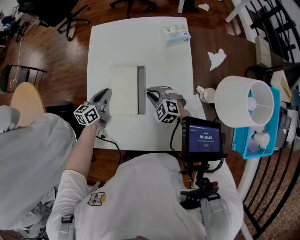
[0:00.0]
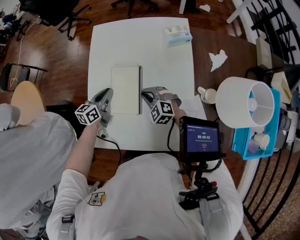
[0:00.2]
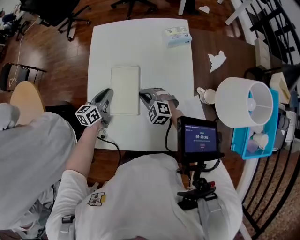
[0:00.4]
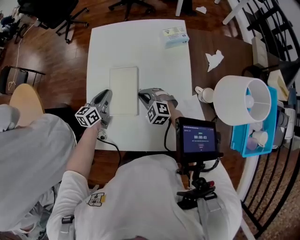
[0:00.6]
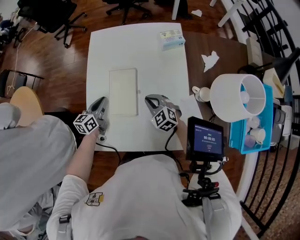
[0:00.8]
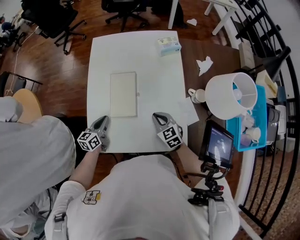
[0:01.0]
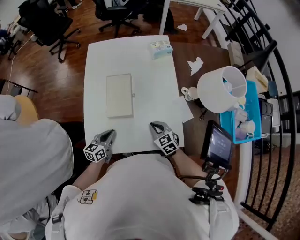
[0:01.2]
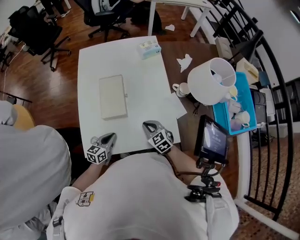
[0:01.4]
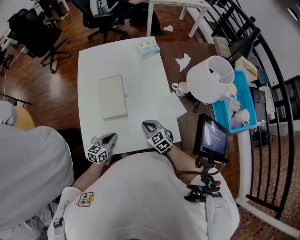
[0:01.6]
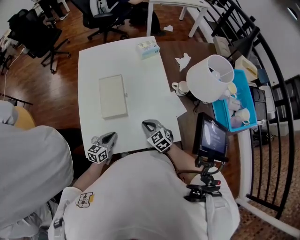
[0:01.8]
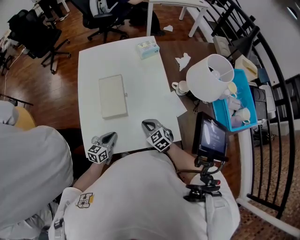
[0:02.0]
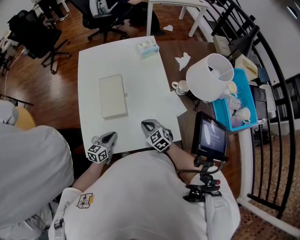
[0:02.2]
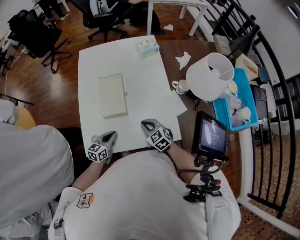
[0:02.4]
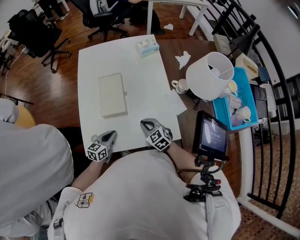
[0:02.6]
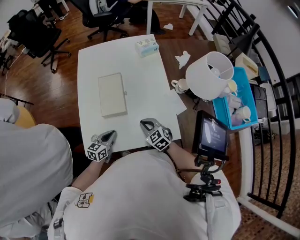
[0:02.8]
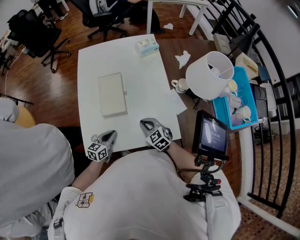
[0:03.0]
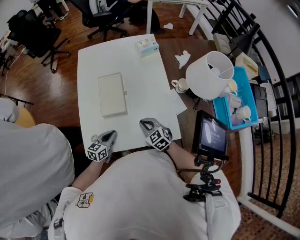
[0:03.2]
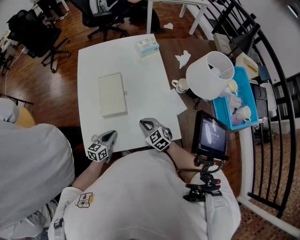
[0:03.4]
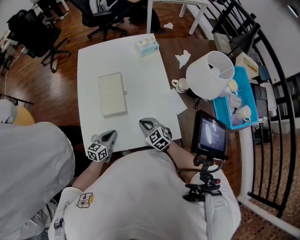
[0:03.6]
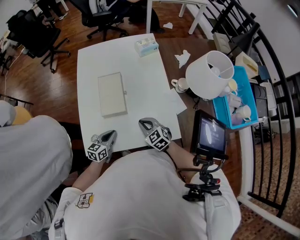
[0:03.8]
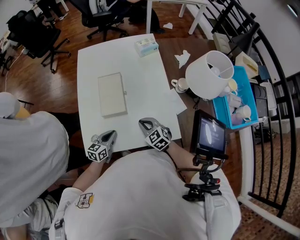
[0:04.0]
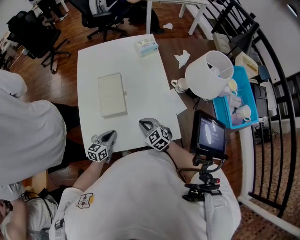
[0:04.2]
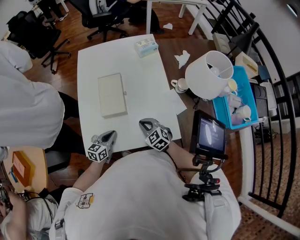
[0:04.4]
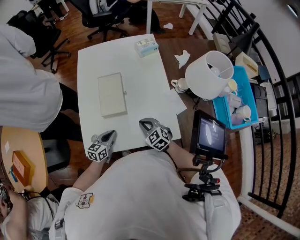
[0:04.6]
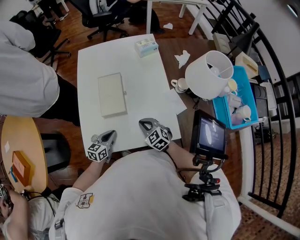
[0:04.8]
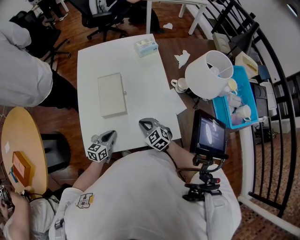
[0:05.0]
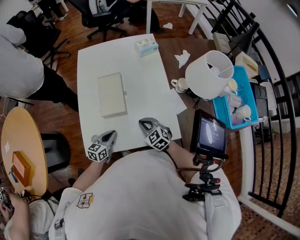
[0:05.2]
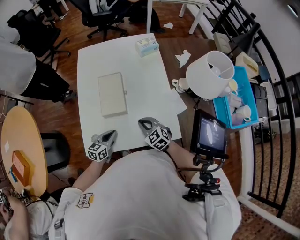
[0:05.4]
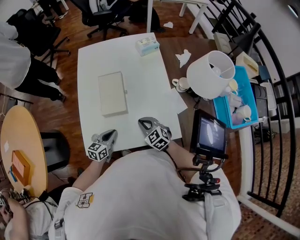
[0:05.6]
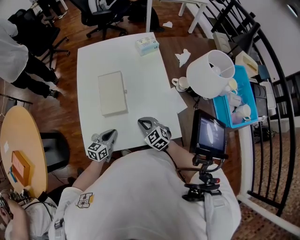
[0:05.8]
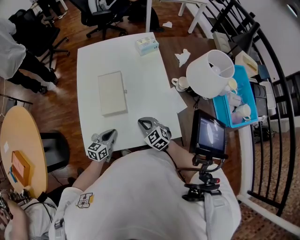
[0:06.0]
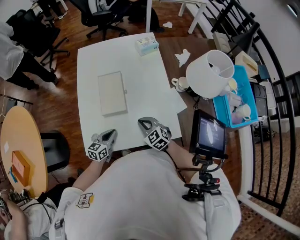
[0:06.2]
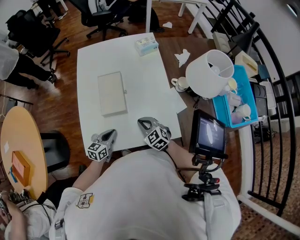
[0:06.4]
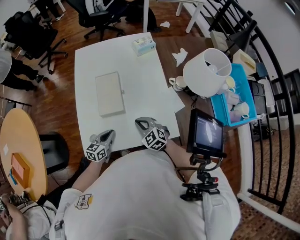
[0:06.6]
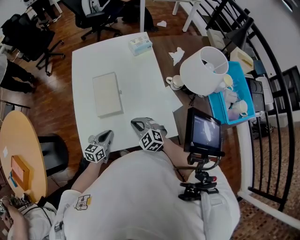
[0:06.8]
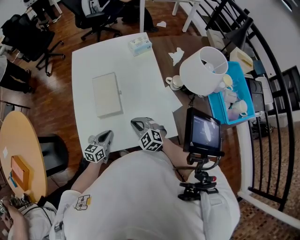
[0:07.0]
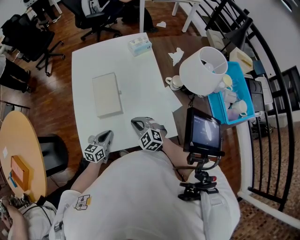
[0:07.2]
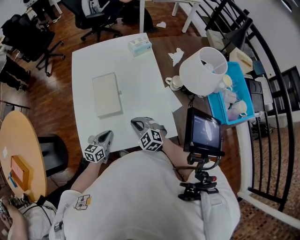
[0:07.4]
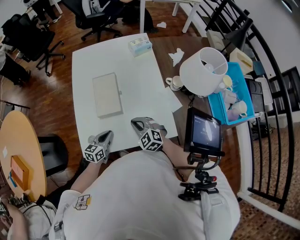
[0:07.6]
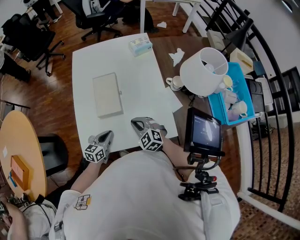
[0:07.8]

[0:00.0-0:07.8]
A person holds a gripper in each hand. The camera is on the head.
0:00.0 to 0:01.6: Both grippers travel together backward, some 20 cm. The right gripper rotates approximately 30 degrees.
0:01.6 to 0:03.2: Neither gripper changes place.
0:03.2 to 0:06.2: The two grippers keep their place.
0:06.2 to 0:07.8: The grippers move only a little.

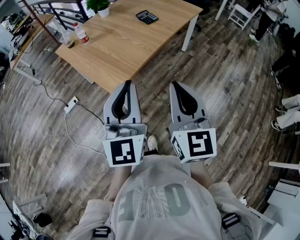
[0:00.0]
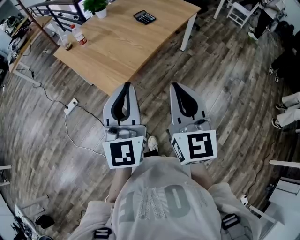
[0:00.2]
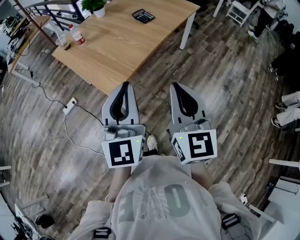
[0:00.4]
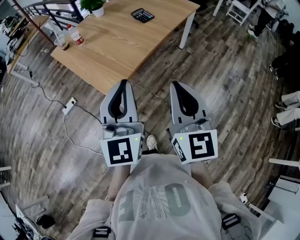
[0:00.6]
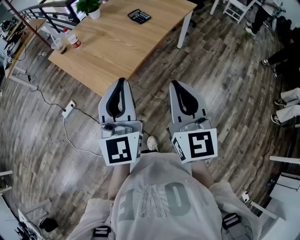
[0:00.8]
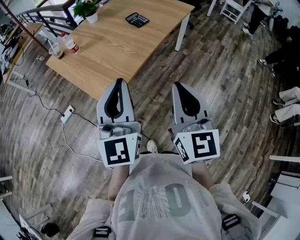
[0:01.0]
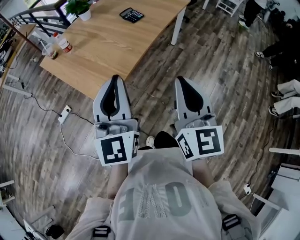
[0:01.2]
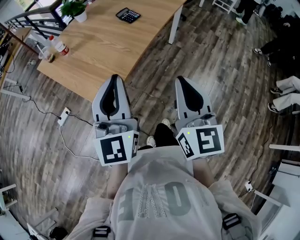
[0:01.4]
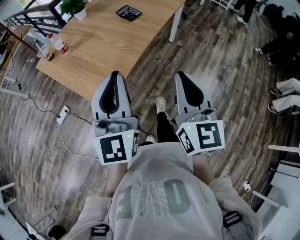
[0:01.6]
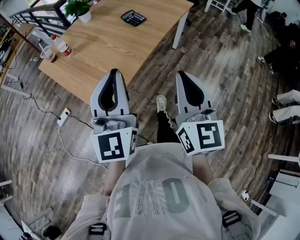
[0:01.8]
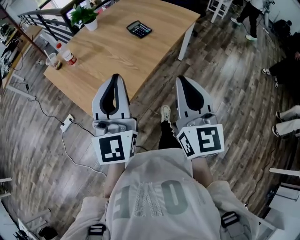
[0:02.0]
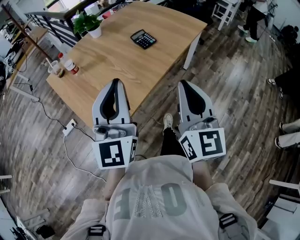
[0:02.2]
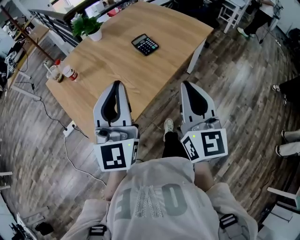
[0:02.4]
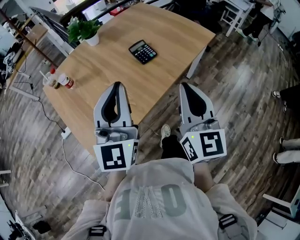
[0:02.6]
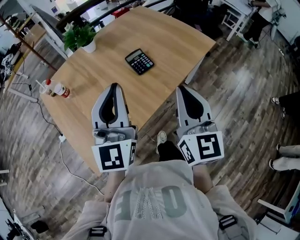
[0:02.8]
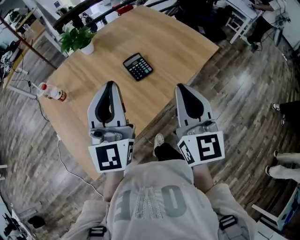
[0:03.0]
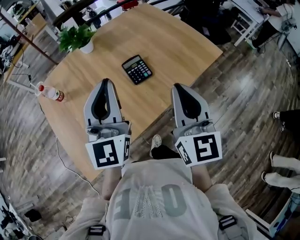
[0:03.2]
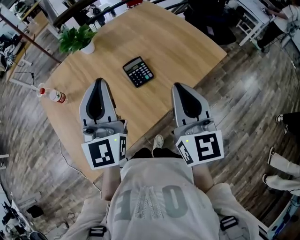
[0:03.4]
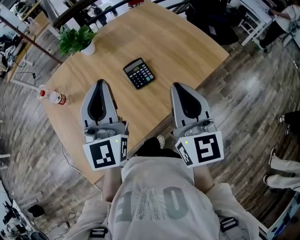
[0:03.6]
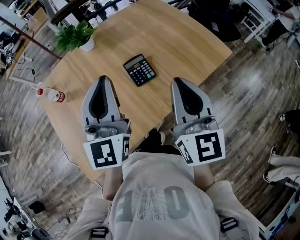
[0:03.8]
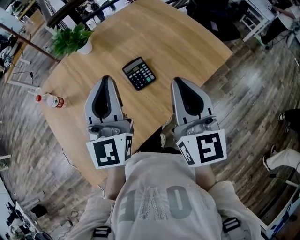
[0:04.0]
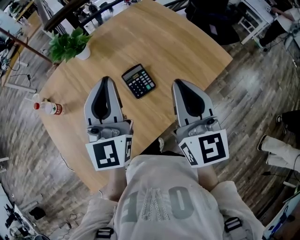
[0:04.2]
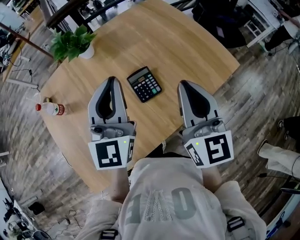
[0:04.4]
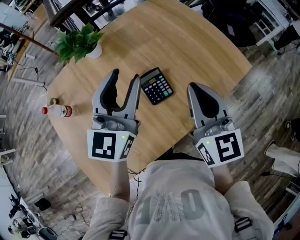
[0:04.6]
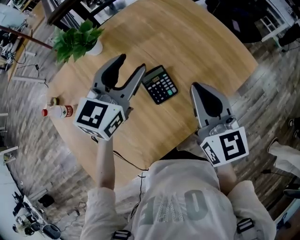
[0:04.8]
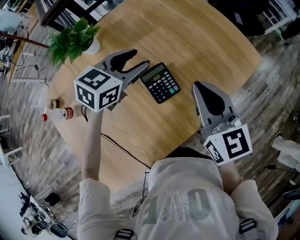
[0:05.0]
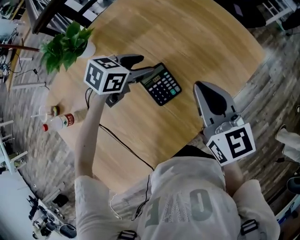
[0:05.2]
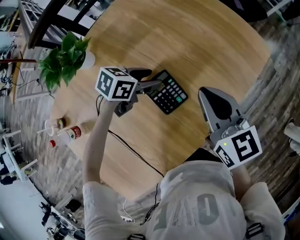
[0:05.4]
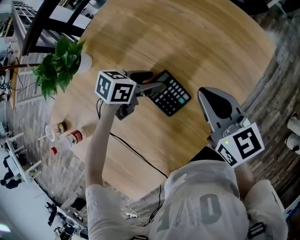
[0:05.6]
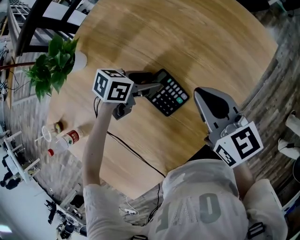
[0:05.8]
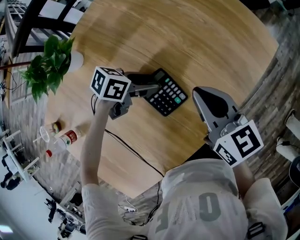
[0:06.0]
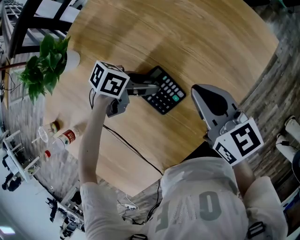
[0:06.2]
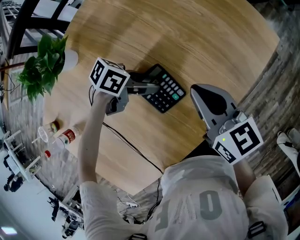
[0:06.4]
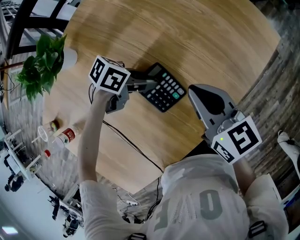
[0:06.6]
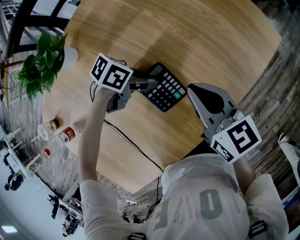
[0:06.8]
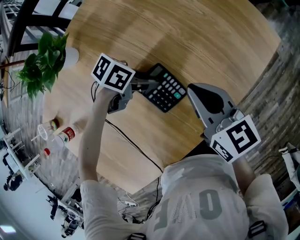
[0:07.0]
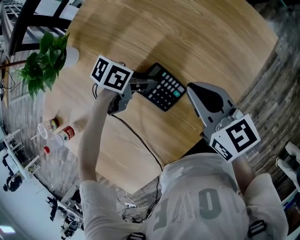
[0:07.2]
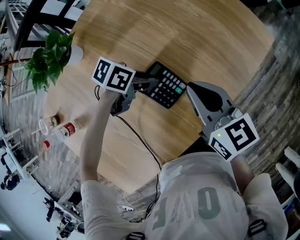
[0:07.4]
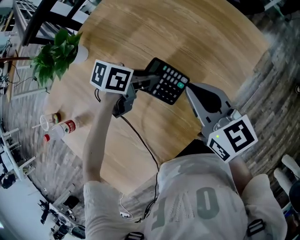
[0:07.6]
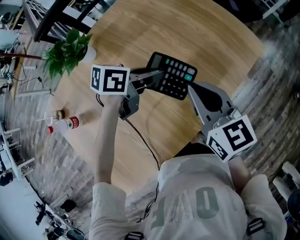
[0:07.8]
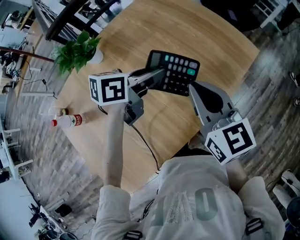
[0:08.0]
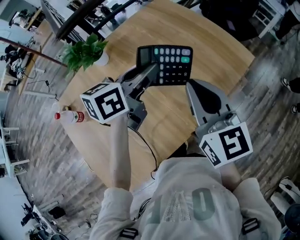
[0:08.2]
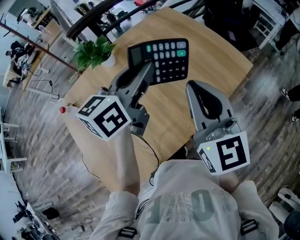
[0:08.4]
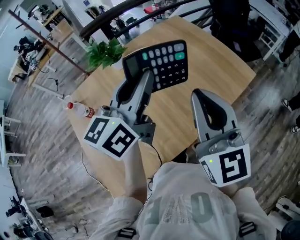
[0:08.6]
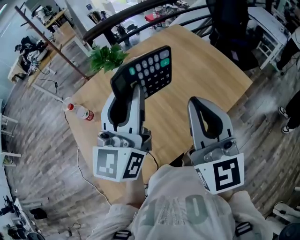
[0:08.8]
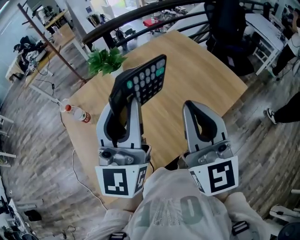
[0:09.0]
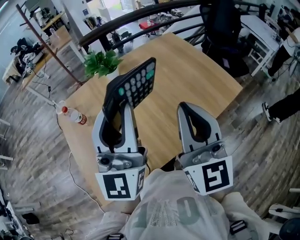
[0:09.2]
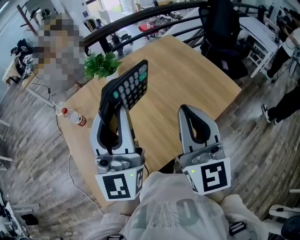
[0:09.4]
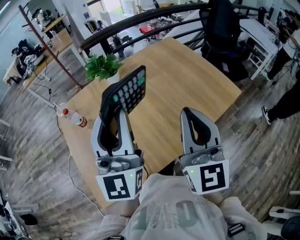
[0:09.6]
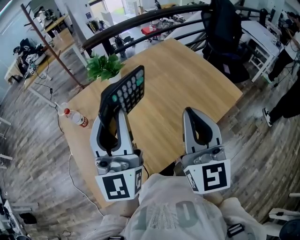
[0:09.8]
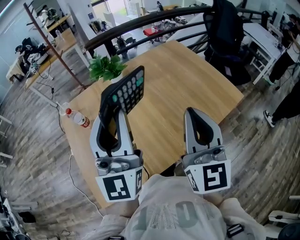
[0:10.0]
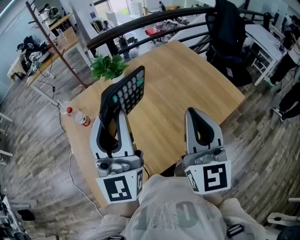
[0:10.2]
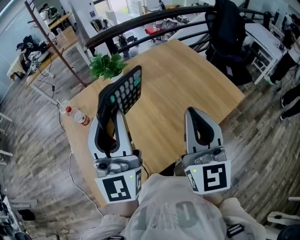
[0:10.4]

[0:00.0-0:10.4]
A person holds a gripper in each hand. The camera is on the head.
0:00.0 to 0:01.4: Both grippers travel together forward, roughly 10 cm.
0:01.4 to 0:03.0: The grippers both shift forward by roughly 40 cm.
0:03.0 to 0:04.4: The two grippers go about 20 cm forward.
0:04.4 to 0:06.0: The right gripper travels downward by about 20 cm, and turns by some 30 degrees. Meanwhile the left gripper heads downward, covering about 35 cm, tilts its fingers some 50 degrees downward, and opens.
0:06.0 to 0:07.4: The left gripper closes.
0:07.4 to 0:09.0: The left gripper moves upward, some 40 cm, and points its fingers roughly 60 degrees further upward, while the right gripper is displaced upward by some 25 cm, and tips its fingers upward by approximately 30 degrees.
0:09.0 to 0:10.4: There are only small adjustments of the grippers.

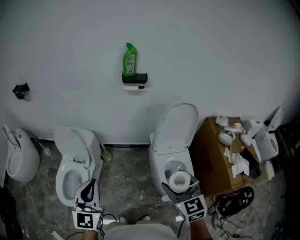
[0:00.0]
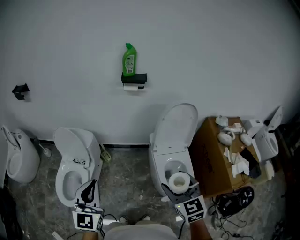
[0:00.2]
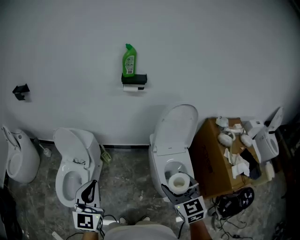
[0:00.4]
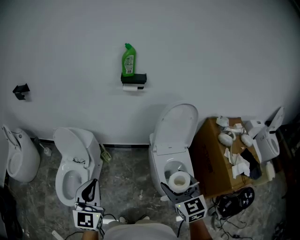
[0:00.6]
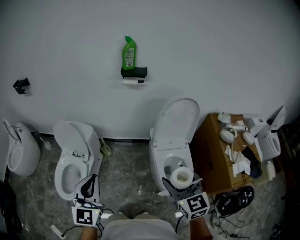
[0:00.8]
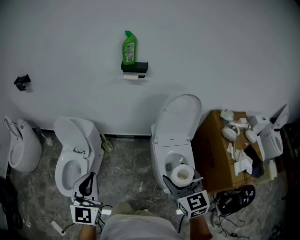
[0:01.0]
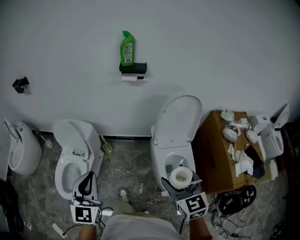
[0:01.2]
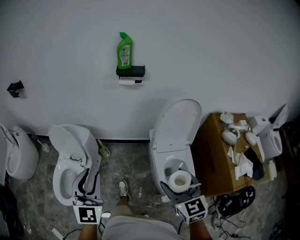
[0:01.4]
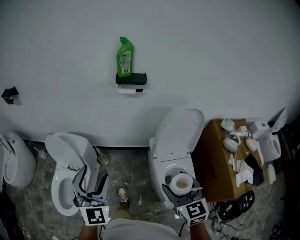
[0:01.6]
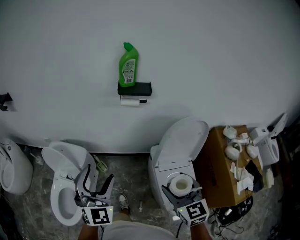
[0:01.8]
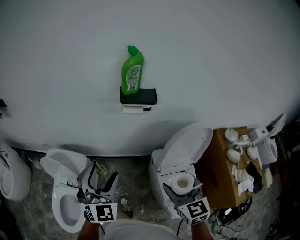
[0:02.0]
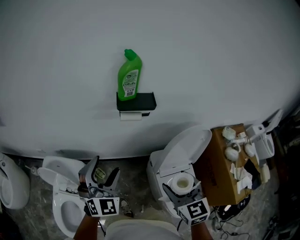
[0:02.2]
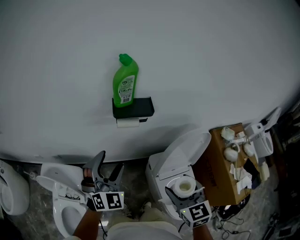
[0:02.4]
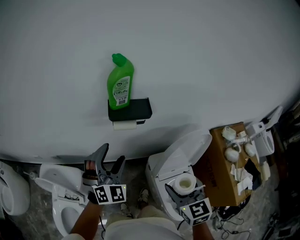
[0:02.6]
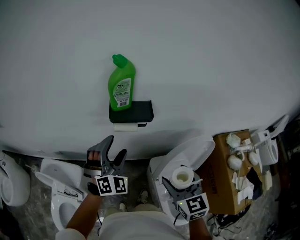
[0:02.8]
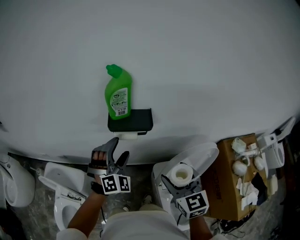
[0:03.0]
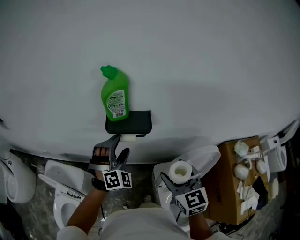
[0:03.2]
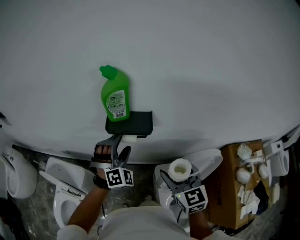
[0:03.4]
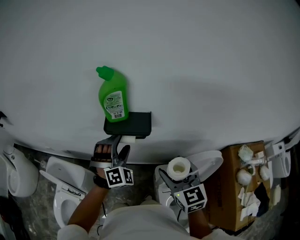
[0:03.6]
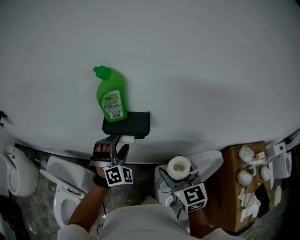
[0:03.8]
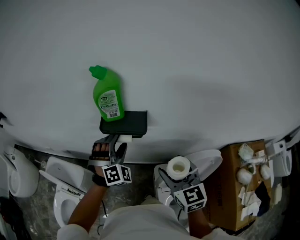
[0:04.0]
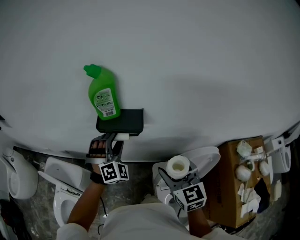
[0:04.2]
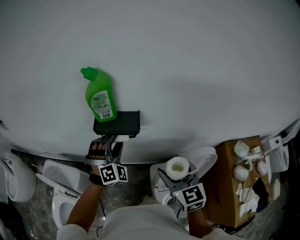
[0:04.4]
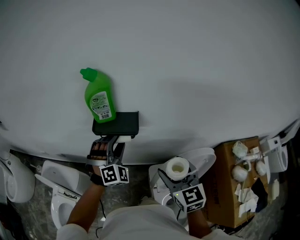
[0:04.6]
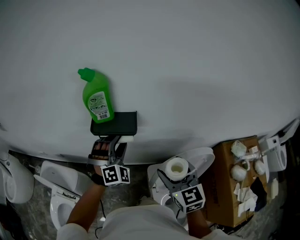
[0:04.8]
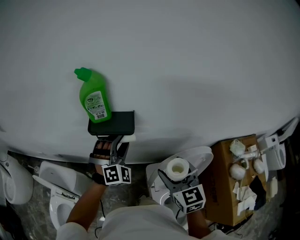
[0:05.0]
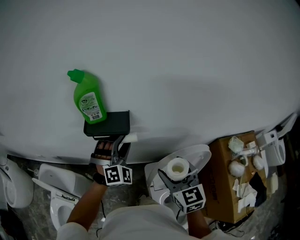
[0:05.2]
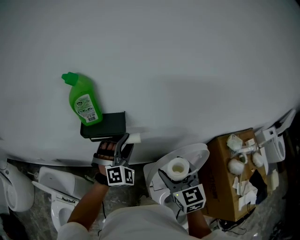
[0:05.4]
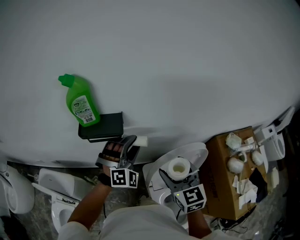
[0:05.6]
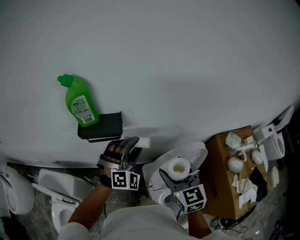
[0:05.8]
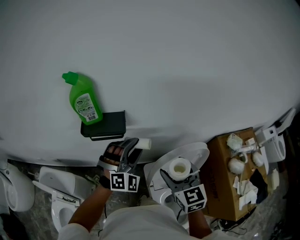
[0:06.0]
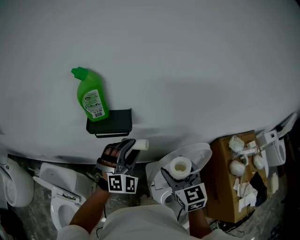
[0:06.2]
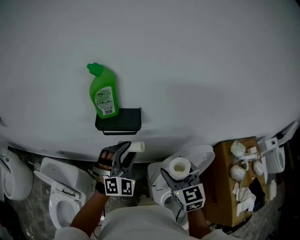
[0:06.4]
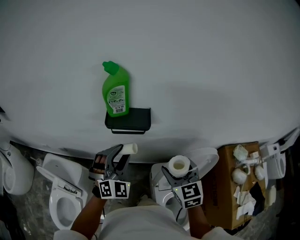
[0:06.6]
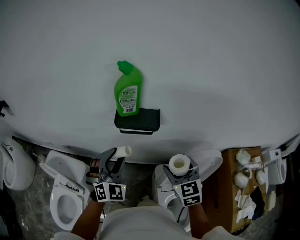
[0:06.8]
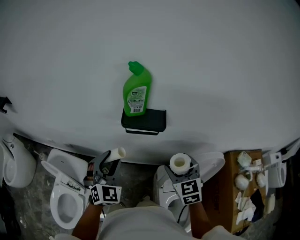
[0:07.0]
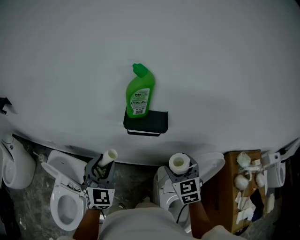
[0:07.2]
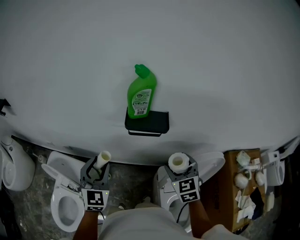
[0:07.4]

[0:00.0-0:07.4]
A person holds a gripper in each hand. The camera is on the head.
0:00.0 to 0:01.4: The grippers both shift forward by roughly 5 cm.
0:01.4 to 0:03.0: Both grippers are carried forward, some 50 cm. The left gripper rolls clockwise, seen from behind, by approximately 40 degrees, and opens up.
0:03.0 to 0:04.4: The left gripper shifts approximately 5 cm forward, and closes up, while the right gripper travels to the right by roughly 5 cm.
0:04.4 to 0:06.0: The left gripper travels to the right by roughly 15 cm, and swivels some 20 degrees. Meanwhile the right gripper goes roughly 5 cm to the right.
0:06.0 to 0:07.4: The left gripper shifts roughly 30 cm to the left, and rolls counterclockwise, seen from behind, by roughly 50 degrees; the right gripper travels to the left by about 10 cm.
